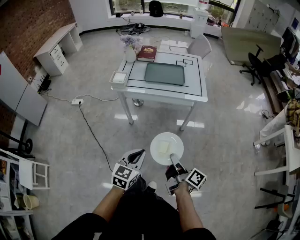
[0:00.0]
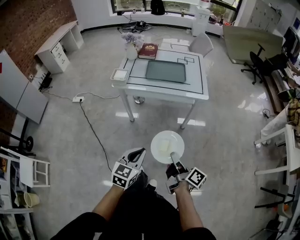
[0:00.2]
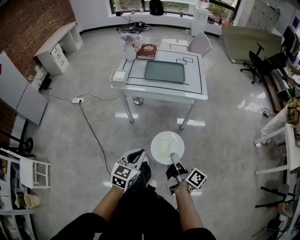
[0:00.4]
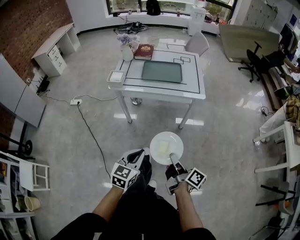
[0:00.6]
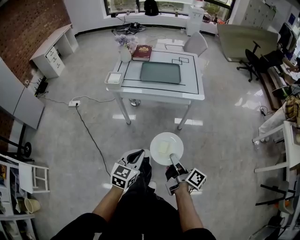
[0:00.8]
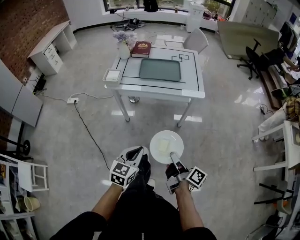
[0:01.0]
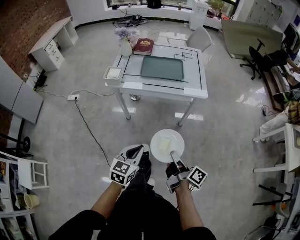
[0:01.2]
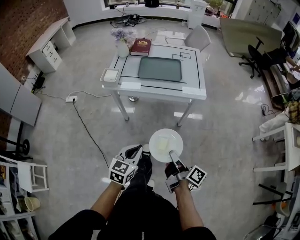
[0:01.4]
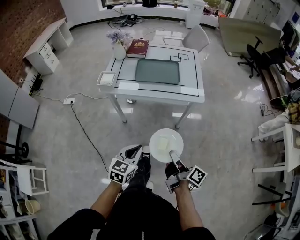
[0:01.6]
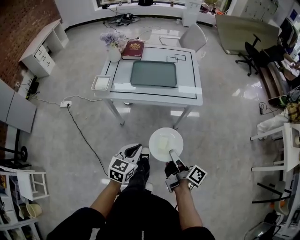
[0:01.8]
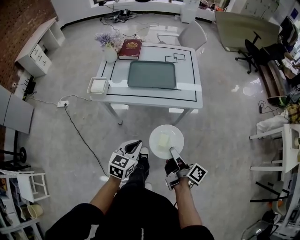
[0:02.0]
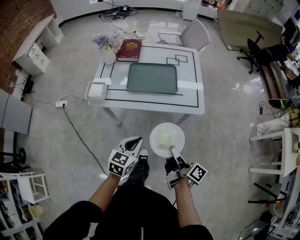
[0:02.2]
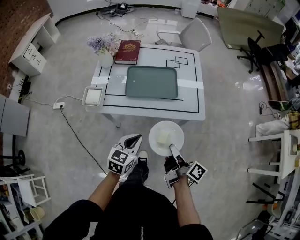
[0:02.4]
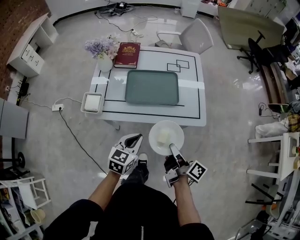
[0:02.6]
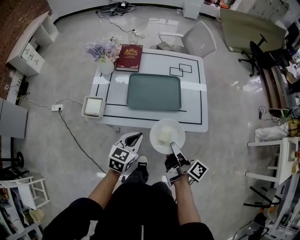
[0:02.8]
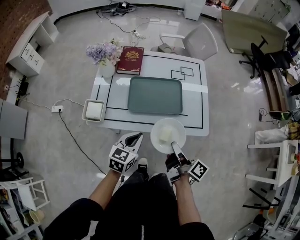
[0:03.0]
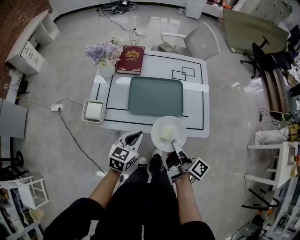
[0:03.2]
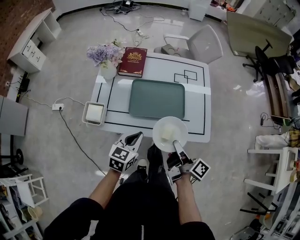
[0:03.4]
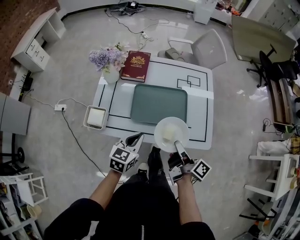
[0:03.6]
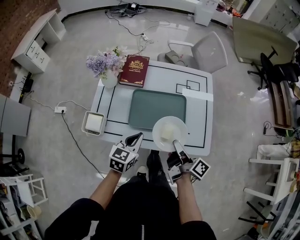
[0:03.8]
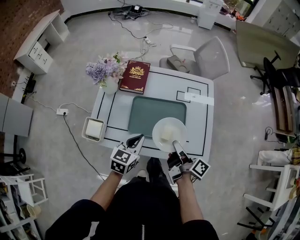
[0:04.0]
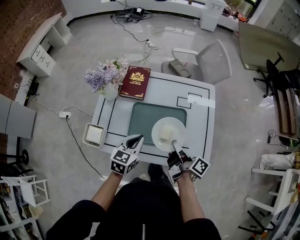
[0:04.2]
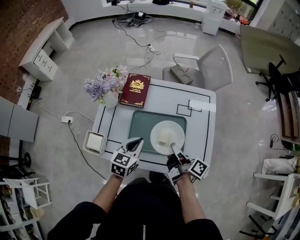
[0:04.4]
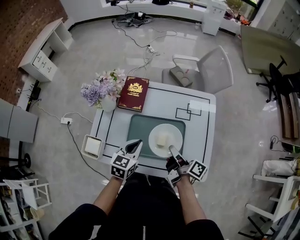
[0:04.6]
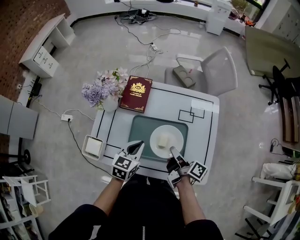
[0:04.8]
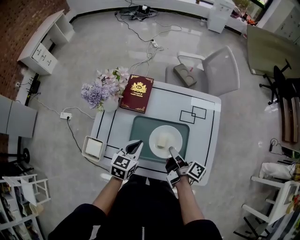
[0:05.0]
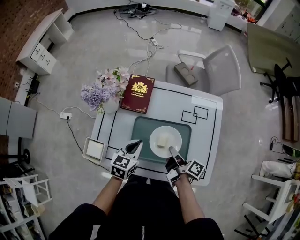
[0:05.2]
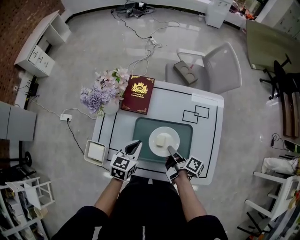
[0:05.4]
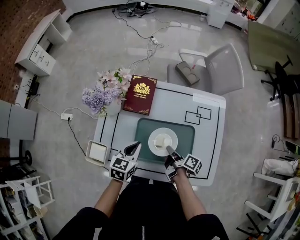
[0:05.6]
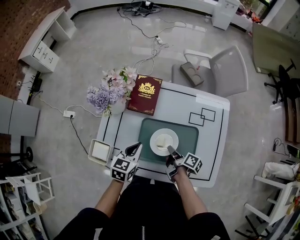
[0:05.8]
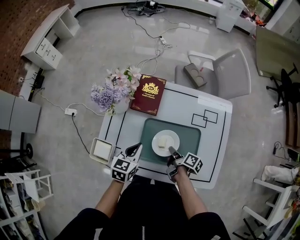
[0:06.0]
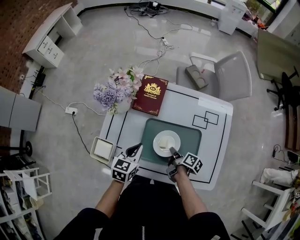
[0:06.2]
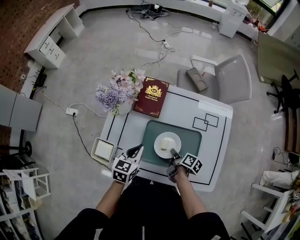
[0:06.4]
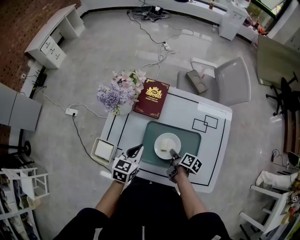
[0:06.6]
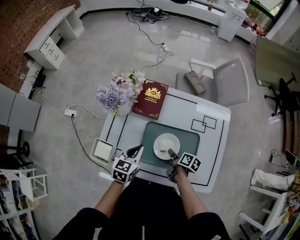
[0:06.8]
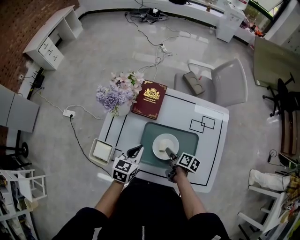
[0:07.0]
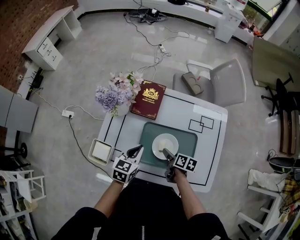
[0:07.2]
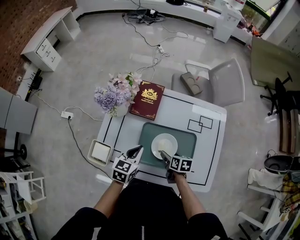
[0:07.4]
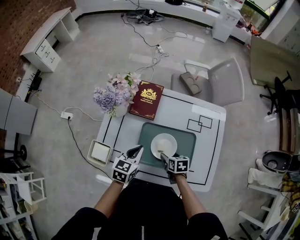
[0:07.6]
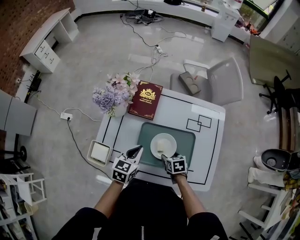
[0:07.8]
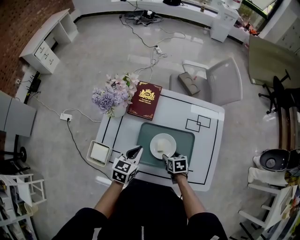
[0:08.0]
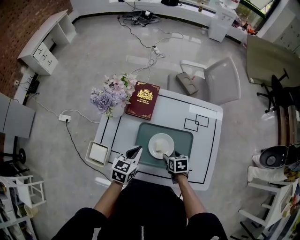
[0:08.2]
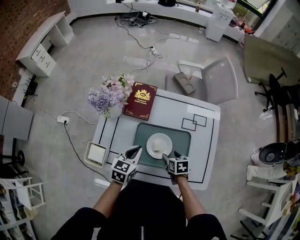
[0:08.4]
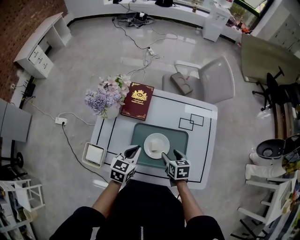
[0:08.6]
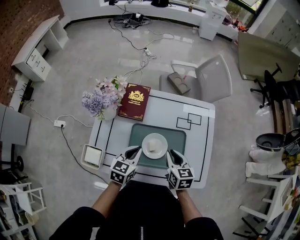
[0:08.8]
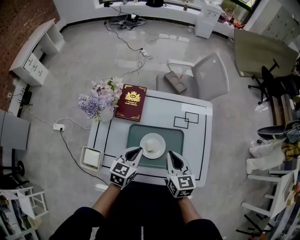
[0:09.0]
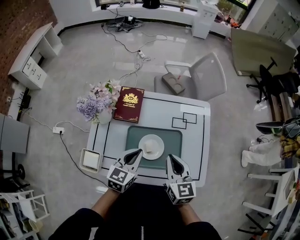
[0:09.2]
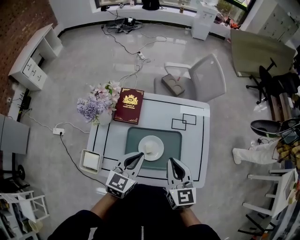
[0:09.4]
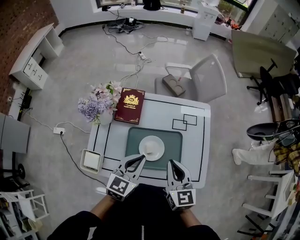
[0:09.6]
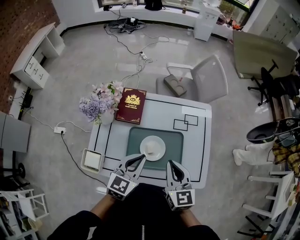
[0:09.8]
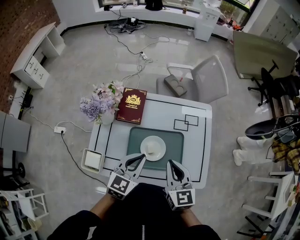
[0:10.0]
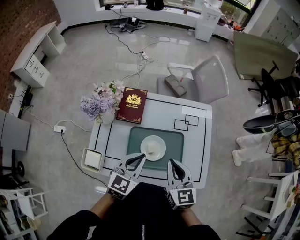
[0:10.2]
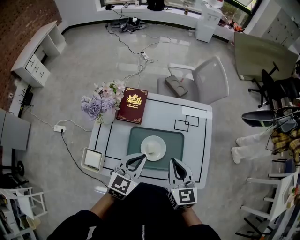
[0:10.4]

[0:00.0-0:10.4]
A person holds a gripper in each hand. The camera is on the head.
0:00.0 to 0:01.4: Both grippers travel together forward, about 5 cm.
0:01.4 to 0:03.0: Both grippers travel together forward, about 35 cm.
0:03.0 to 0:04.4: The grippers both shift forward by about 20 cm.
0:04.4 to 0:06.0: The right gripper is displaced downward, to the left and forward by roughly 20 cm, and changes its angle by about 20 degrees. Meanwhile the left gripper moves to the left and forward, some 10 cm.
0:06.0 to 0:07.4: The right gripper twists some 40 degrees counterclockwise, seen from behind, and opens.
0:07.4 to 0:09.0: The right gripper moves upward, roughly 20 cm, rotates about 40 degrees, and closes; the left gripper goes some 5 cm to the right.
0:09.0 to 0:10.4: The grippers both shift upward by about 10 cm.

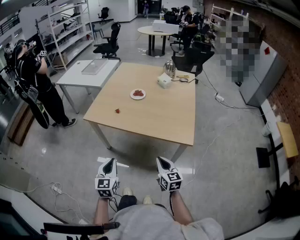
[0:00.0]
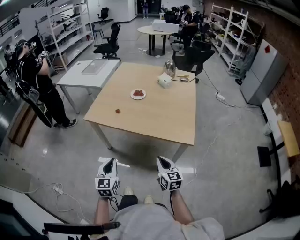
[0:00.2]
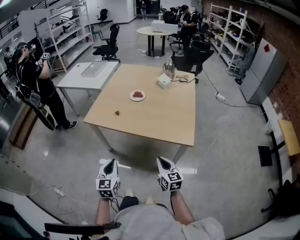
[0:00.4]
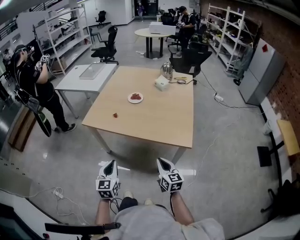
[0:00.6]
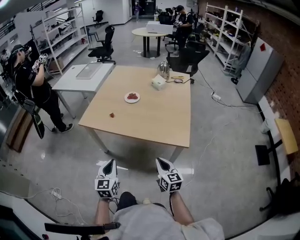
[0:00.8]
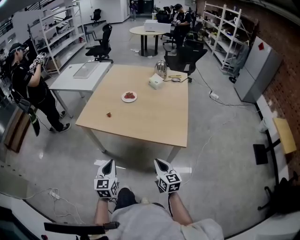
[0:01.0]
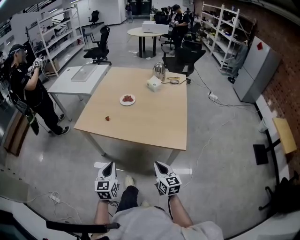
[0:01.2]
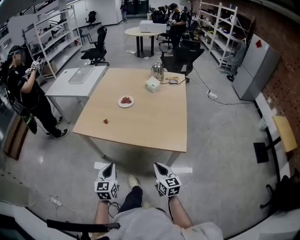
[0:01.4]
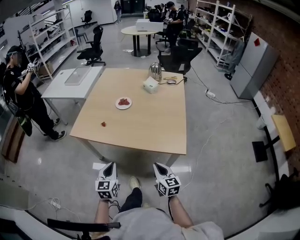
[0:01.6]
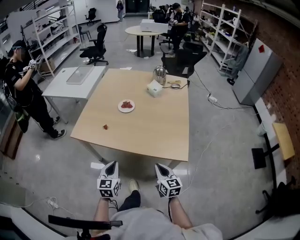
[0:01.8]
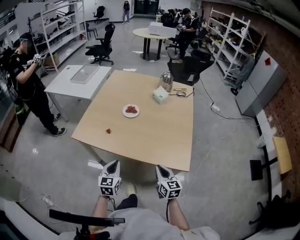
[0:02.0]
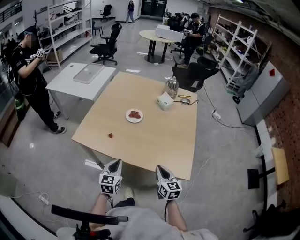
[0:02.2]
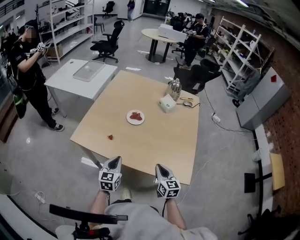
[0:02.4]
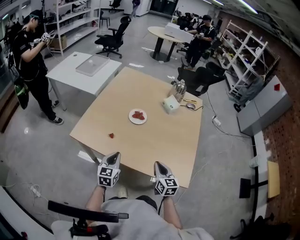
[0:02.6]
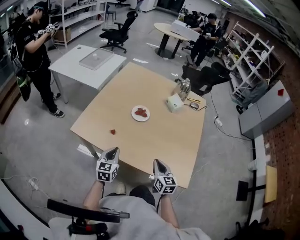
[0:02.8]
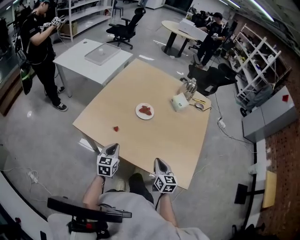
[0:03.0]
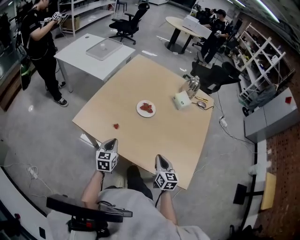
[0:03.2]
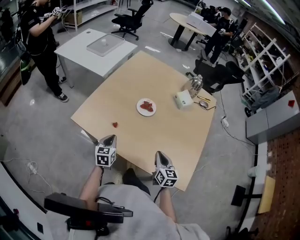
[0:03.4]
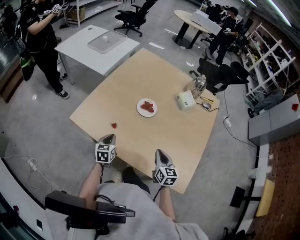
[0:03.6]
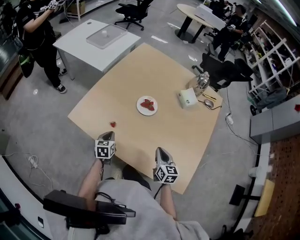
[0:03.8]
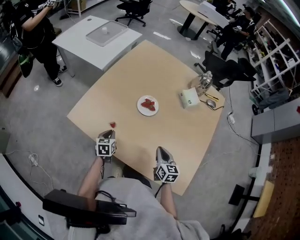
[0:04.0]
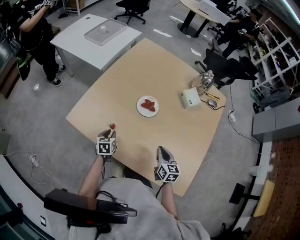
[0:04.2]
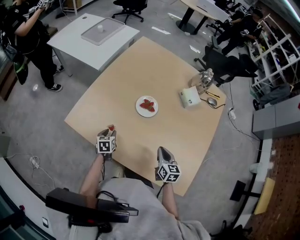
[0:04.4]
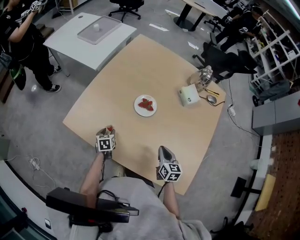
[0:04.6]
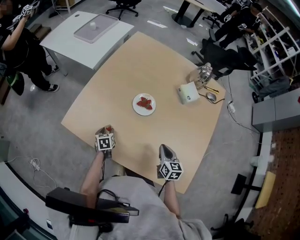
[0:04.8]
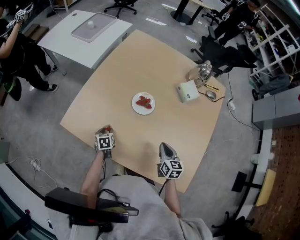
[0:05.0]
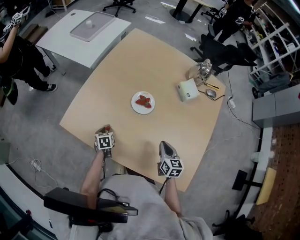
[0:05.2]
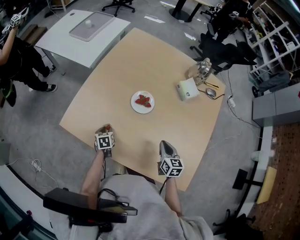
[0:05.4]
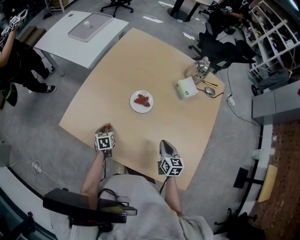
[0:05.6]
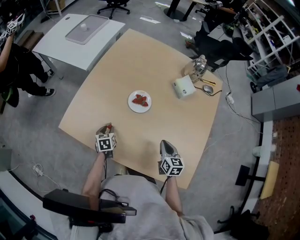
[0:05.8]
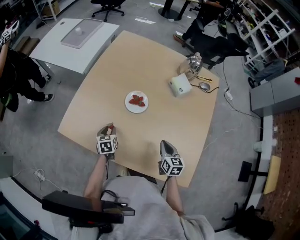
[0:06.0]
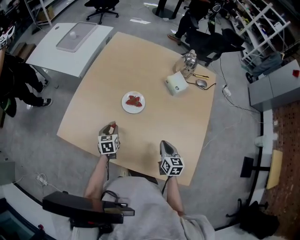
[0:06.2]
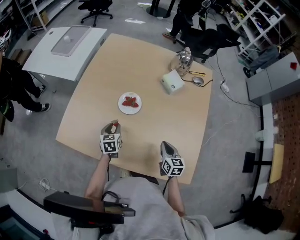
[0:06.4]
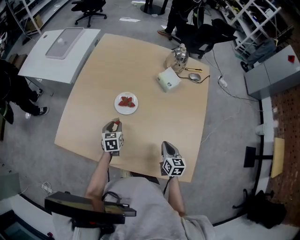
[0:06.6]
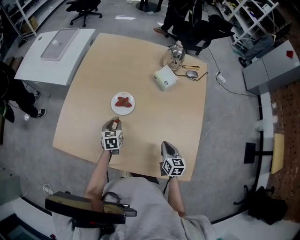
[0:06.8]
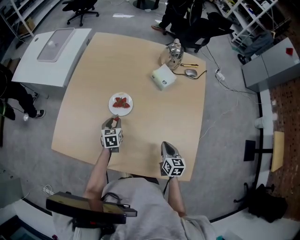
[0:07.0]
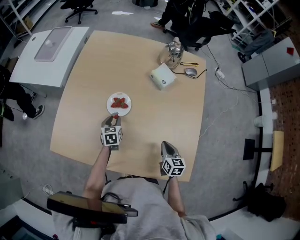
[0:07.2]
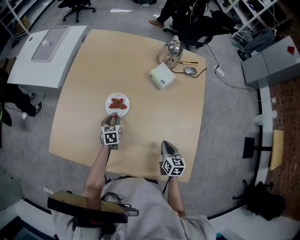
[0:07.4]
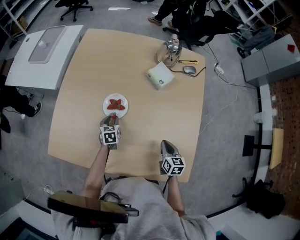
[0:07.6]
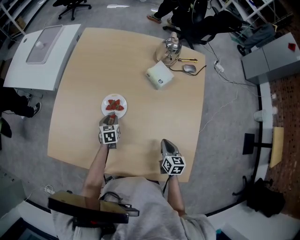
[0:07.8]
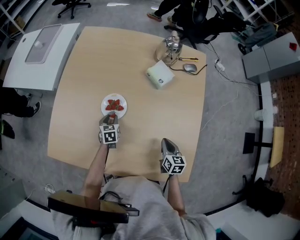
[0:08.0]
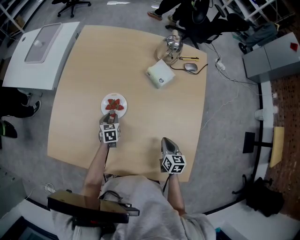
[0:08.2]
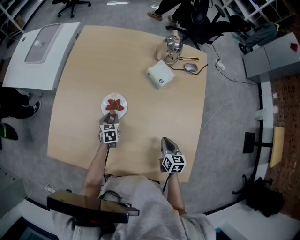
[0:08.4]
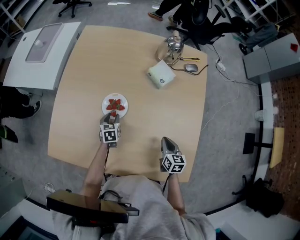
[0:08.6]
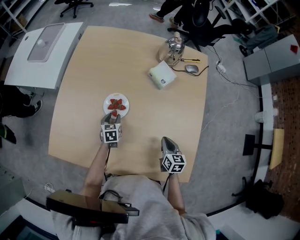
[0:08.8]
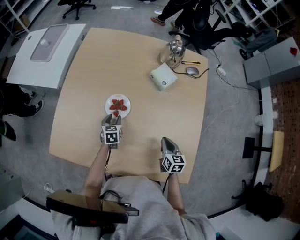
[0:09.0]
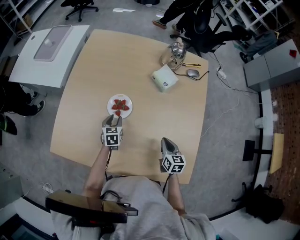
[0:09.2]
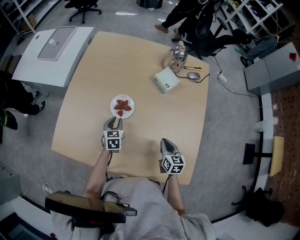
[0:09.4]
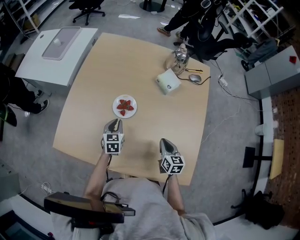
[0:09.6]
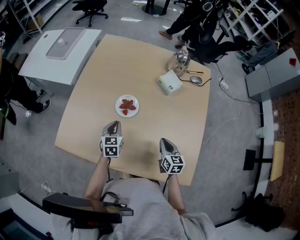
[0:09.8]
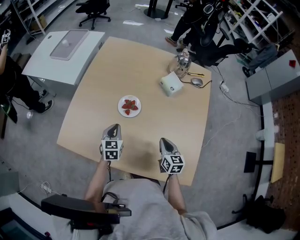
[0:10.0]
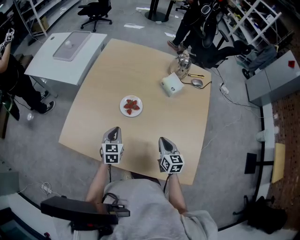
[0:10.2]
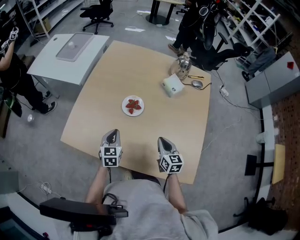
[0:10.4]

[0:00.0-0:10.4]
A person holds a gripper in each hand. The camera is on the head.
0:00.0 to 0:01.4: The left gripper heads forward and to the right, covering some 10 cm. The right gripper is displaced to the right by roughly 5 cm.
0:01.4 to 0:03.0: Both grippers move forward, about 25 cm.
0:03.0 to 0:04.4: The right gripper heads forward, covering approximately 15 cm; the left gripper travels downward and forward by approximately 20 cm, changes its angle by approximately 30 degrees, and opens its fingers.
0:04.4 to 0:06.0: The left gripper moves about 5 cm.
0:06.0 to 0:07.4: The left gripper is displaced to the right and forward by approximately 15 cm. The right gripper travels to the right by roughly 10 cm.
0:07.4 to 0:09.0: There are only small adjustments of the grippers.
0:09.0 to 0:10.4: The left gripper travels backward, upward and to the left by some 20 cm, and closes its fingers, while the right gripper travels to the left and upward by some 10 cm.

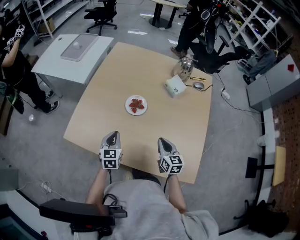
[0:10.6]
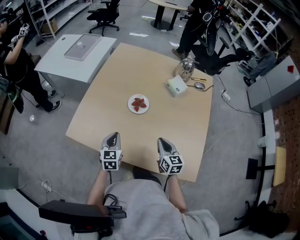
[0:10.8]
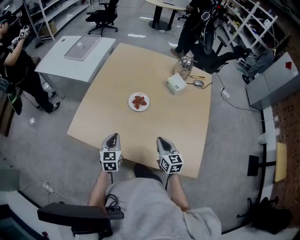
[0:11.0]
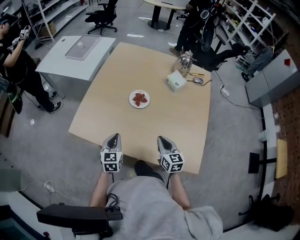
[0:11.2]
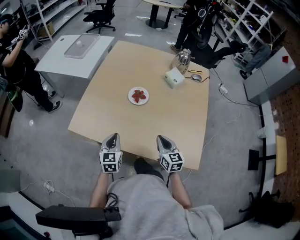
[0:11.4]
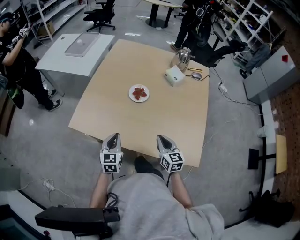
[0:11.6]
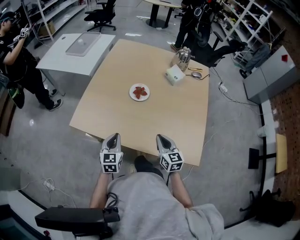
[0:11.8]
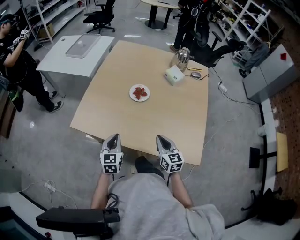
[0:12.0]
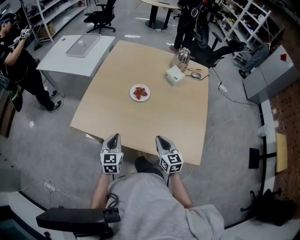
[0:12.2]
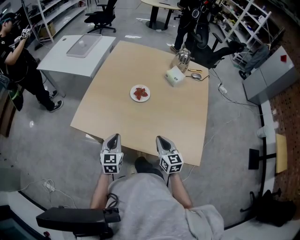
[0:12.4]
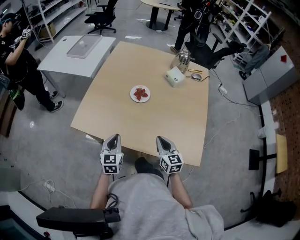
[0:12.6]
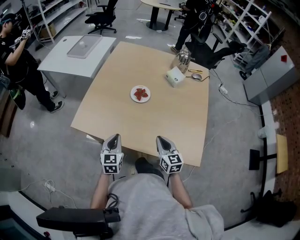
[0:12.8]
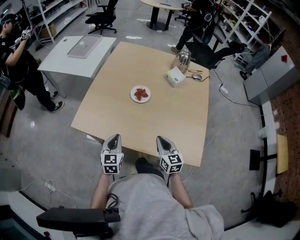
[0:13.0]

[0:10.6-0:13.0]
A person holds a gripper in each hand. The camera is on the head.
0:10.6 to 0:11.8: The right gripper shifts approximately 10 cm backward and to the left, while the left gripper moves backward, approximately 15 cm.
0:11.8 to 0:13.0: Both grippers stay about where they are.
